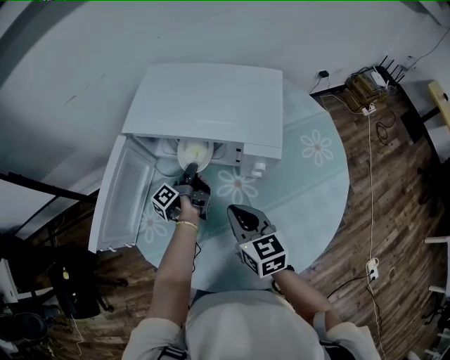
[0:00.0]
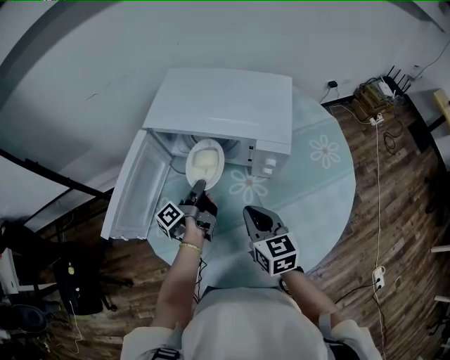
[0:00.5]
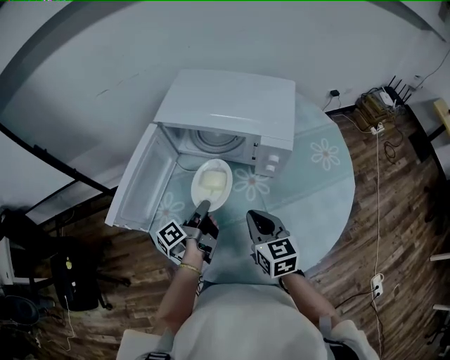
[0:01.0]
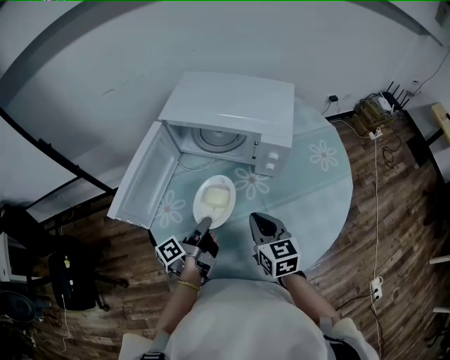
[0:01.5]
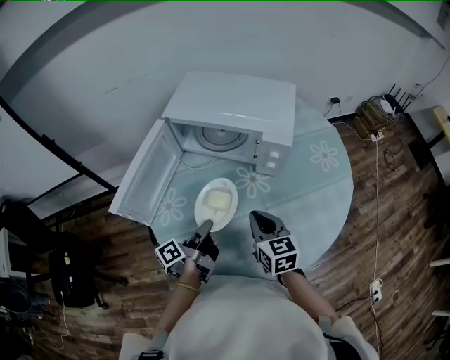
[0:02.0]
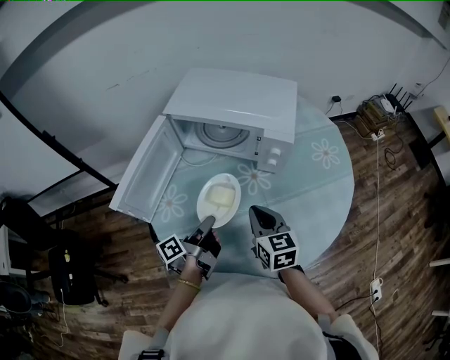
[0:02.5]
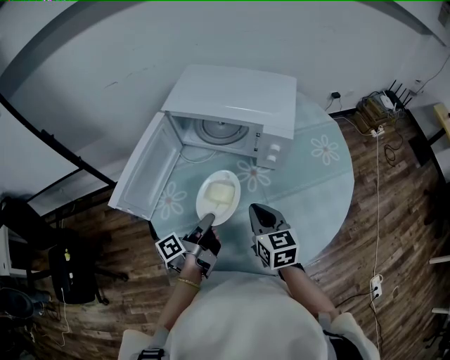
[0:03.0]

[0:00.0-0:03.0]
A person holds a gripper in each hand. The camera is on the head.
0:00.0 to 0:01.5: The right gripper travels backward by roughly 10 cm; the left gripper goes roughly 25 cm backward.
0:01.5 to 0:03.0: The grippers make only small movements.

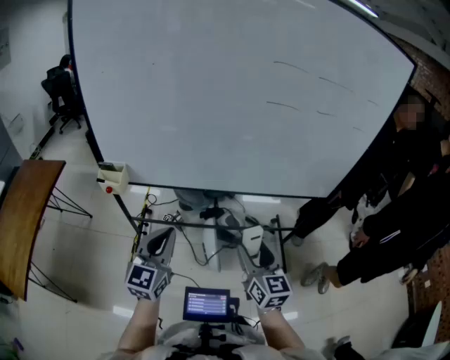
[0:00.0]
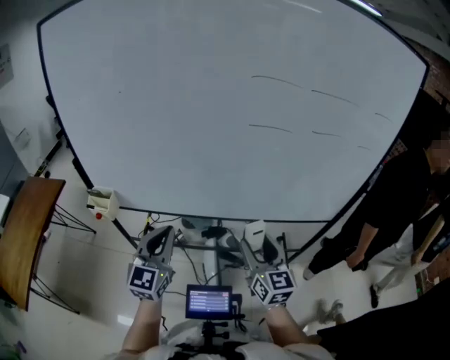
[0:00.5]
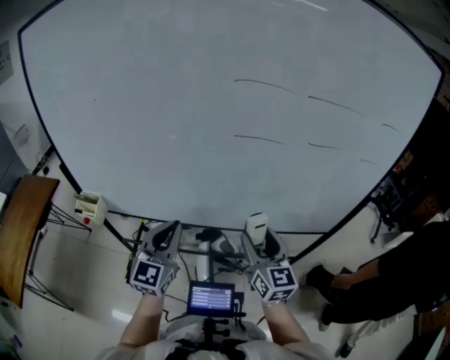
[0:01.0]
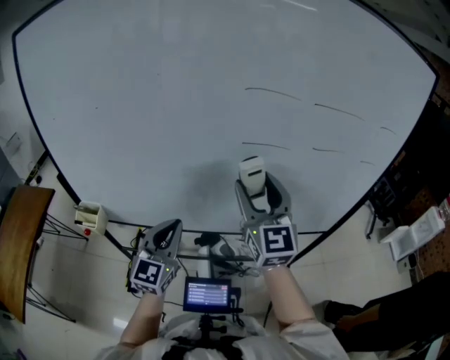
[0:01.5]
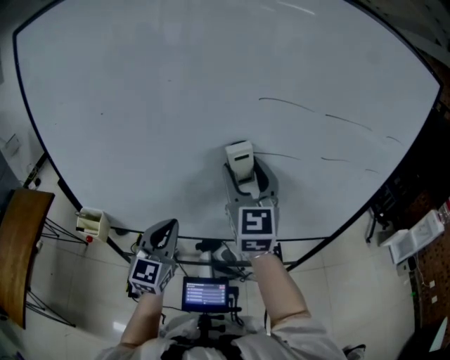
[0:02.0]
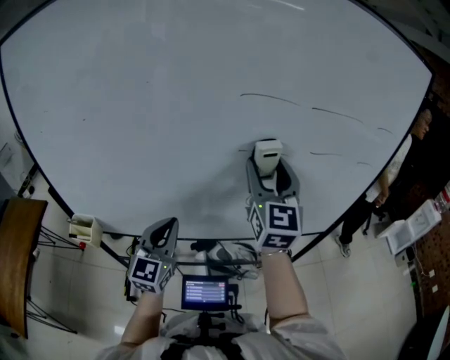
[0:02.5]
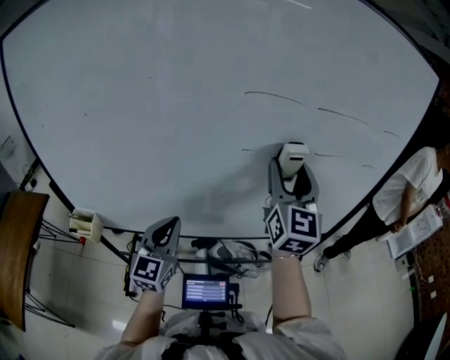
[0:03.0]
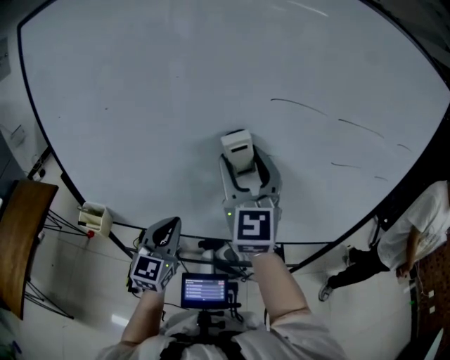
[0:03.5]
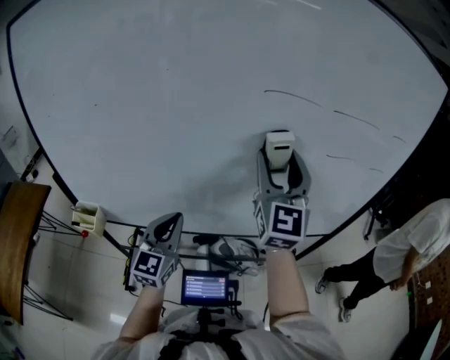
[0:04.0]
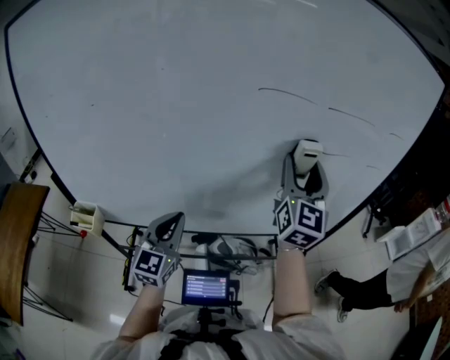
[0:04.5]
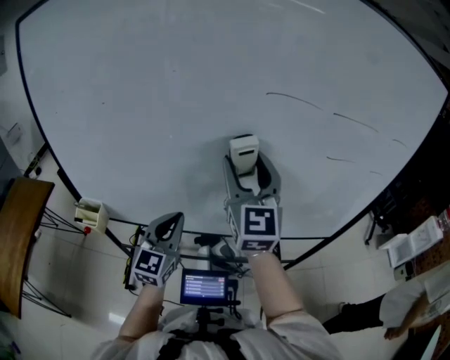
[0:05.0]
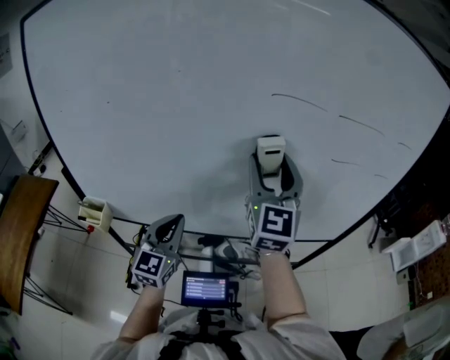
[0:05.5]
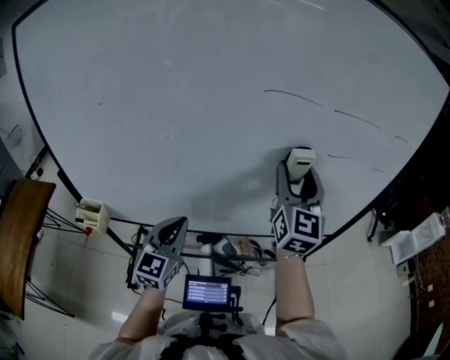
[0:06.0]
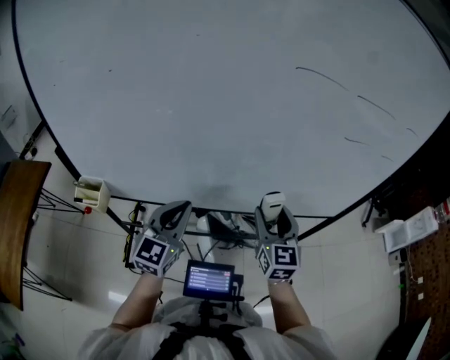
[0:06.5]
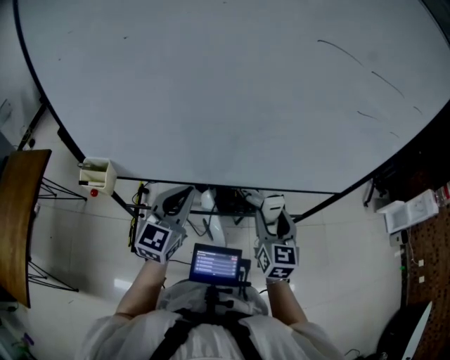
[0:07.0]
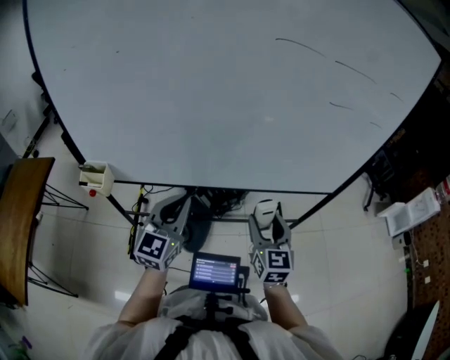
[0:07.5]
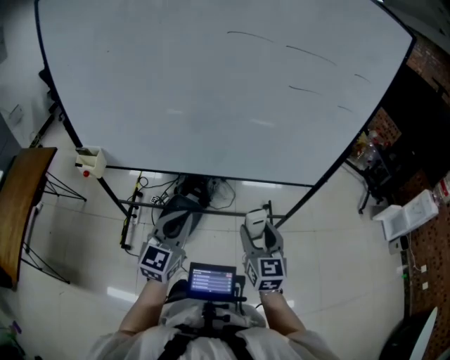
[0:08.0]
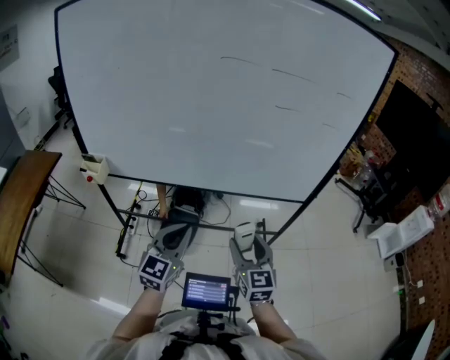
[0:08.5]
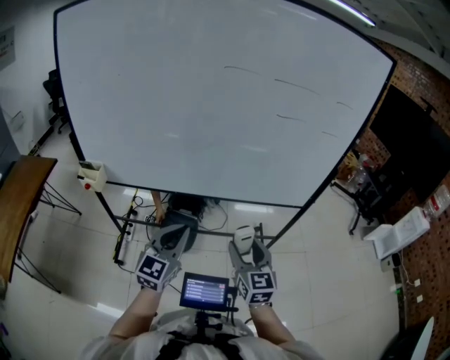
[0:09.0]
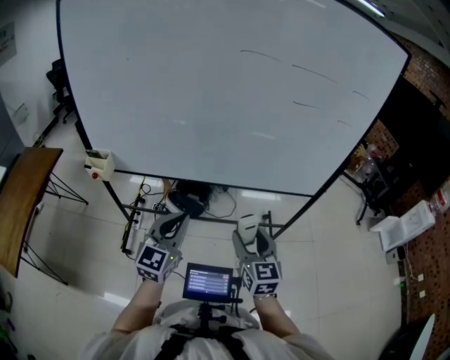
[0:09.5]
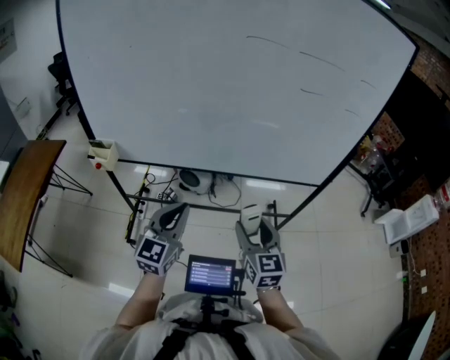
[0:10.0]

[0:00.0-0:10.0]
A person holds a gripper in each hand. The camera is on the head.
0:00.0 to 0:02.0: The left gripper moves forward, approximately 20 cm. The right gripper heads forward and upward, covering about 40 cm, and rotates approximately 30 degrees.
0:02.0 to 0:04.0: The right gripper moves left and right over approximately 15 cm, changing direction 2 times.
0:04.0 to 0:06.0: The right gripper goes left and right, some 15 cm each way, reversing 2 times.
0:06.0 to 0:08.0: The left gripper moves backward and to the right, some 20 cm; the right gripper goes approximately 35 cm backward and downward, and swivels about 30 degrees.
0:08.0 to 0:10.0: The left gripper shifts by roughly 5 cm. Meanwhile the right gripper moves to the left, roughly 5 cm.

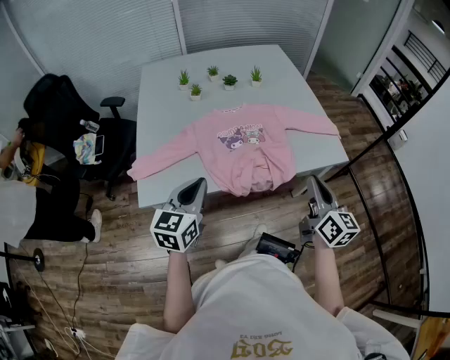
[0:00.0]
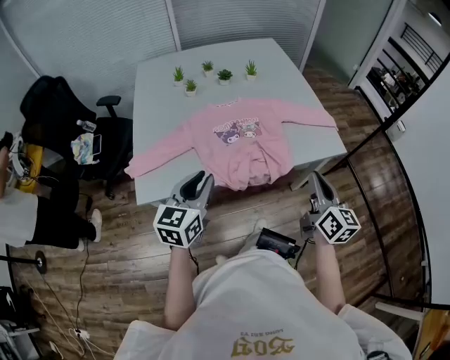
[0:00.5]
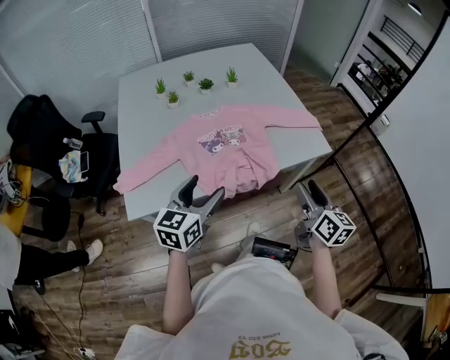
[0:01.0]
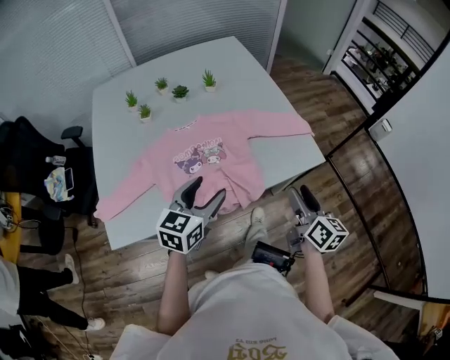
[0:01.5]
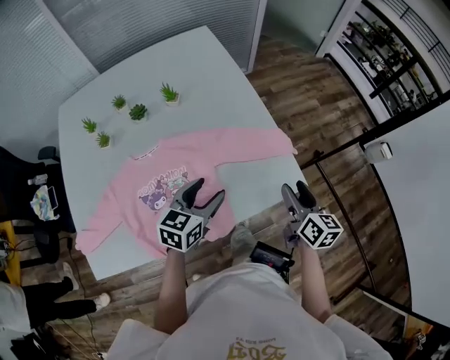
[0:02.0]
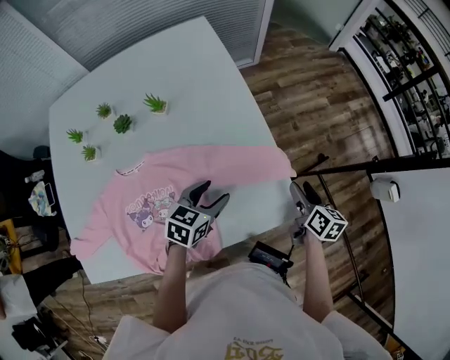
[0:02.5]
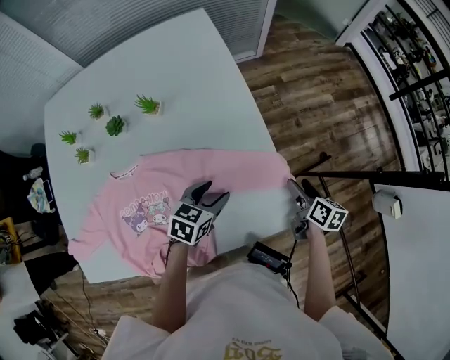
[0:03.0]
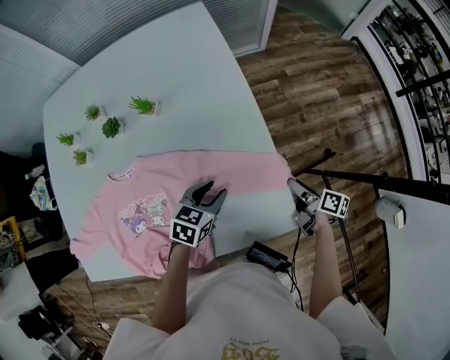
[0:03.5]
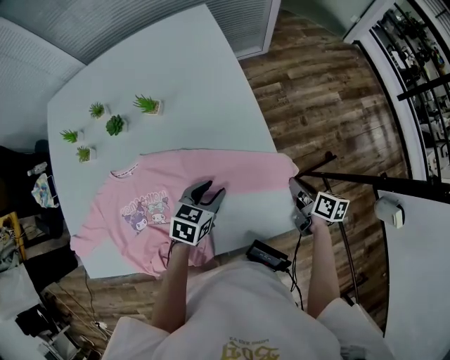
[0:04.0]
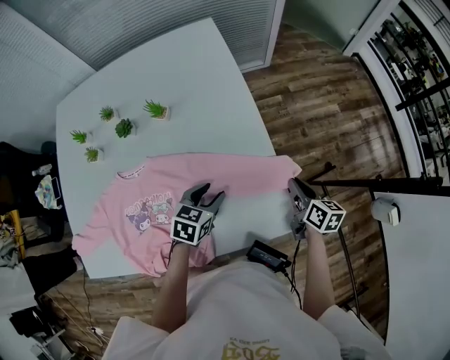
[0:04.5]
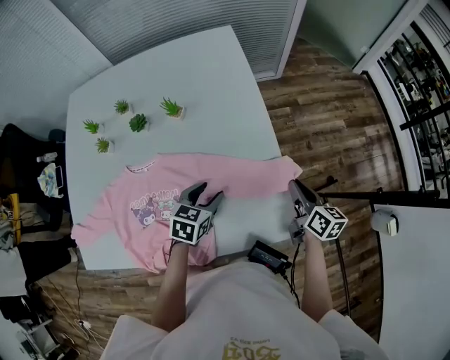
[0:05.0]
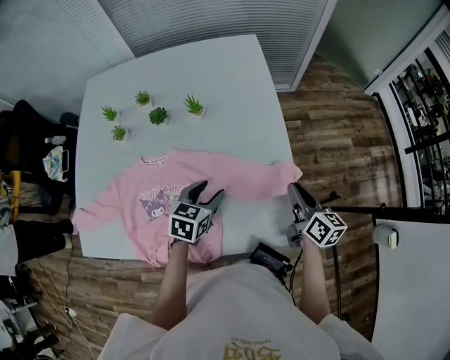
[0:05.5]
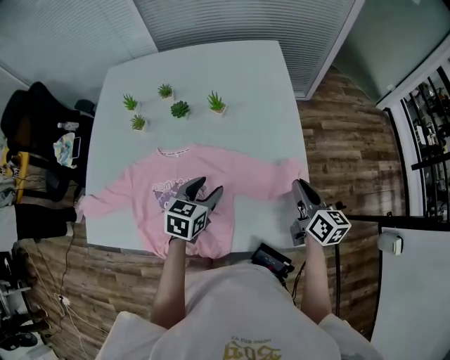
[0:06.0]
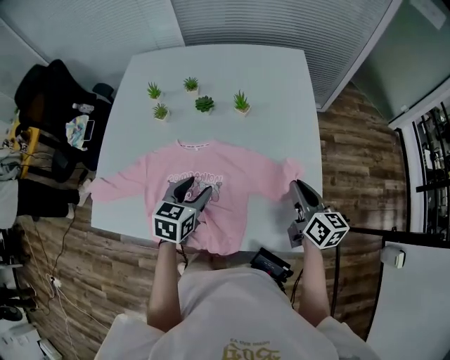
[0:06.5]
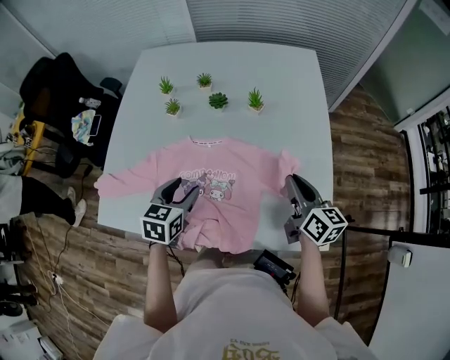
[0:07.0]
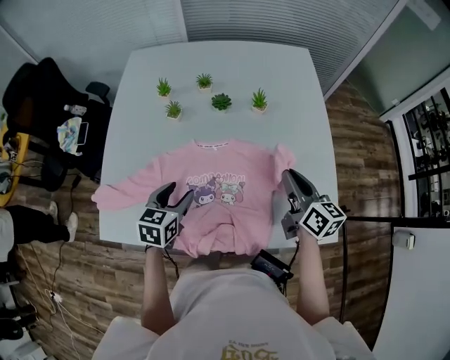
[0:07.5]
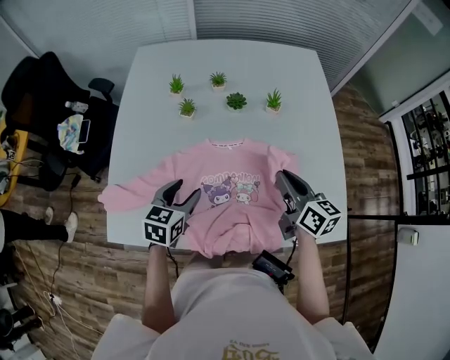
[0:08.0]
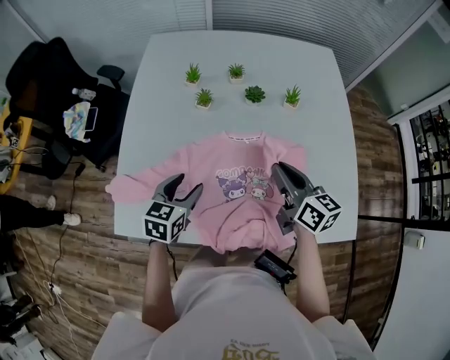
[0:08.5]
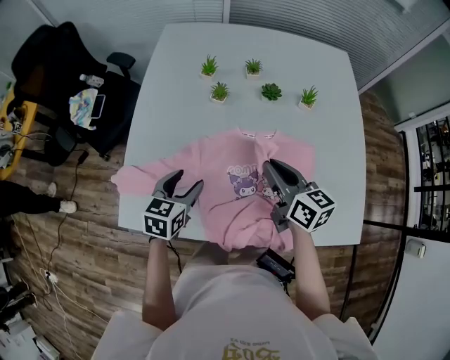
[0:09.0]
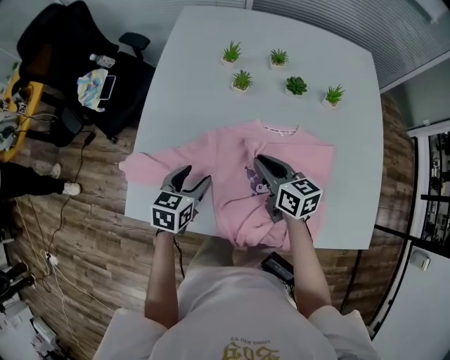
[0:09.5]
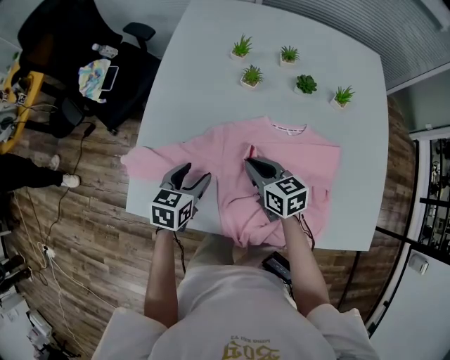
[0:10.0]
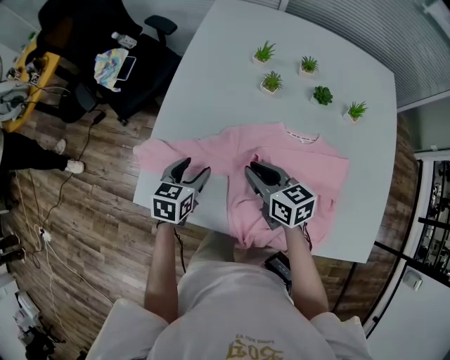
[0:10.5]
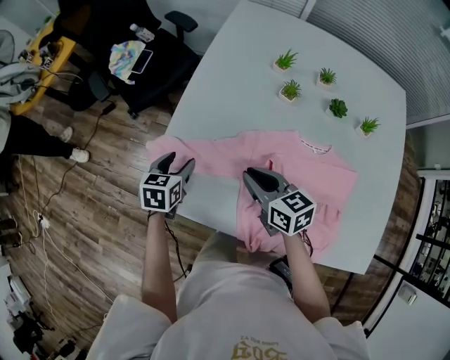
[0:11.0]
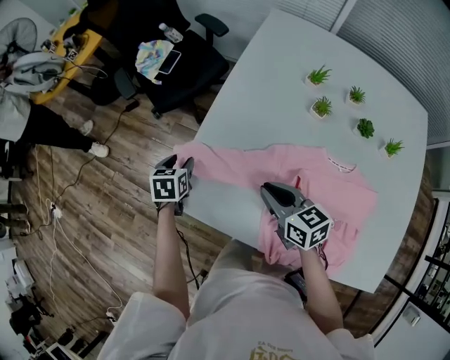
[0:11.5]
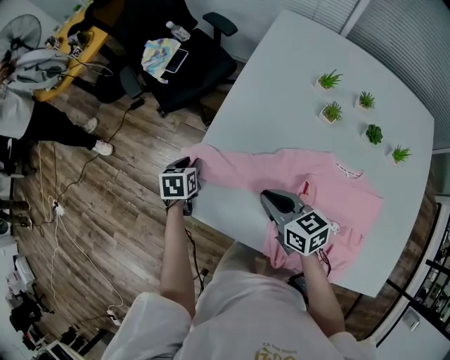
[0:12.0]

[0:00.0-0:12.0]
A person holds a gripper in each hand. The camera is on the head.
0:00.0 to 0:02.0: The right gripper heads forward, to the right and downward, covering roughly 35 cm, rotates about 20 degrees, and opens up; the left gripper is displaced forward and to the right by roughly 40 cm, swivels about 30 degrees, and opens up.
0:02.0 to 0:04.0: The right gripper shifts about 25 cm forward and downward, swivels approximately 30 degrees, and closes; the left gripper is displaced forward, downward and to the right by roughly 20 cm.
0:04.0 to 0:06.0: The left gripper is displaced to the left and upward by about 15 cm, and changes its angle by approximately 20 degrees, while the right gripper heads upward and to the left, covering some 20 cm, and rotates approximately 30 degrees.
0:06.0 to 0:08.0: The two grippers go some 30 cm to the left.
0:08.0 to 0:10.0: The left gripper goes approximately 15 cm to the left and downward; the right gripper shifts some 30 cm to the left and downward, and rotates roughly 30 degrees.
0:10.0 to 0:12.0: The right gripper changes place by roughly 15 cm. The left gripper changes place by some 25 cm, changes its angle by roughly 30 degrees, and closes.

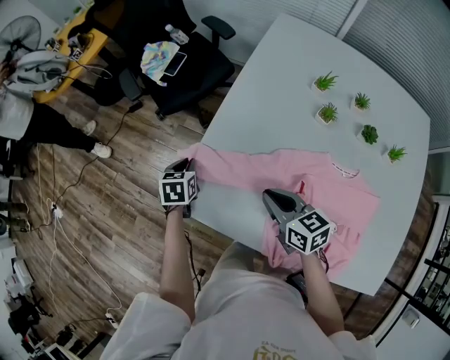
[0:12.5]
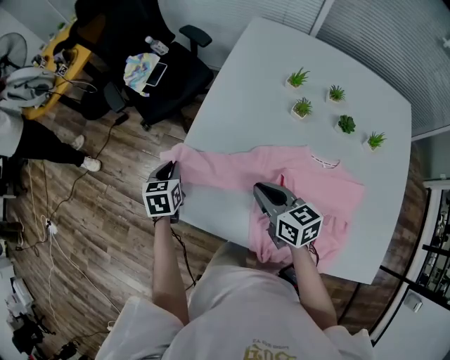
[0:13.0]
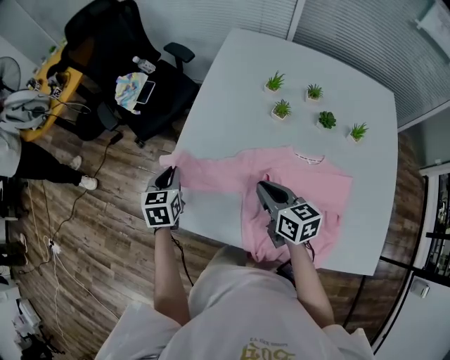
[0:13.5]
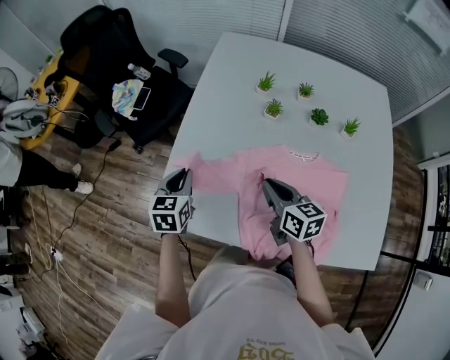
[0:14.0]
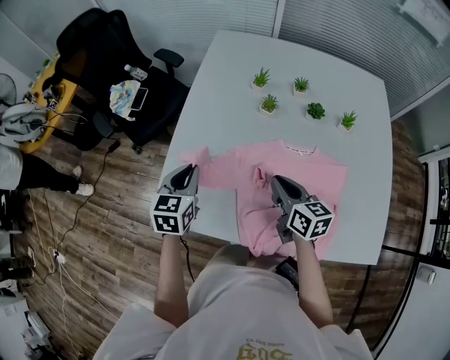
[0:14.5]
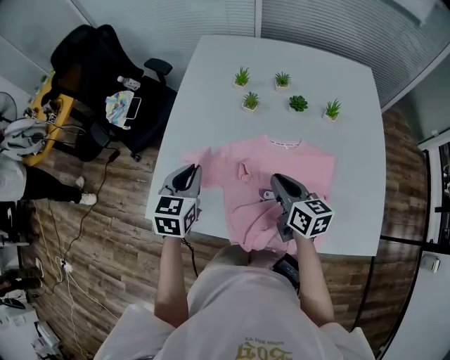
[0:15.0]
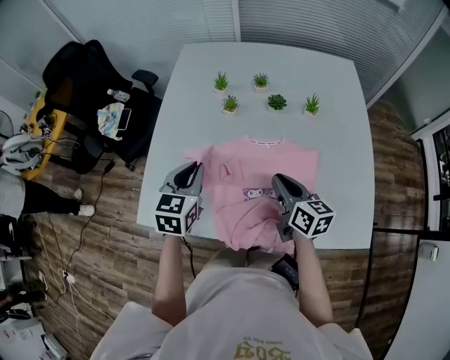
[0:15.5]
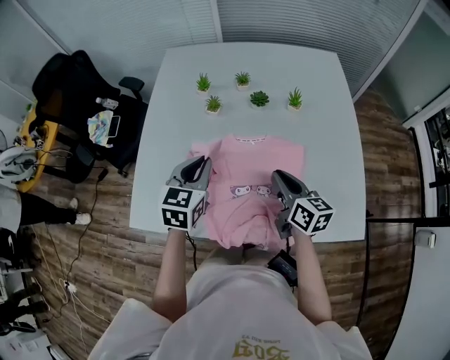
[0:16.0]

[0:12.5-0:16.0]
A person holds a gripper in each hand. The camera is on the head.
0:12.5 to 0:14.5: The left gripper moves to the right and upward, about 25 cm, and turns by roughly 30 degrees, while the right gripper travels to the right by about 15 cm, and rotates roughly 30 degrees.
0:14.5 to 0:16.0: The two grippers go roughly 20 cm to the right.
